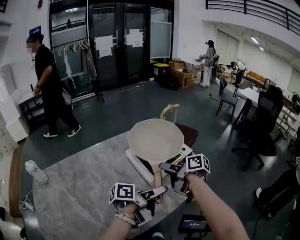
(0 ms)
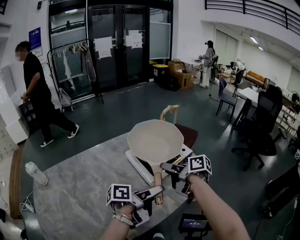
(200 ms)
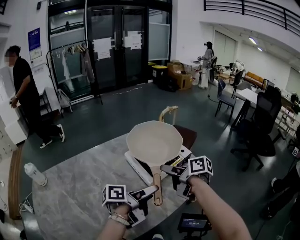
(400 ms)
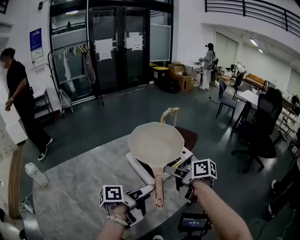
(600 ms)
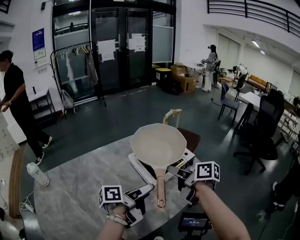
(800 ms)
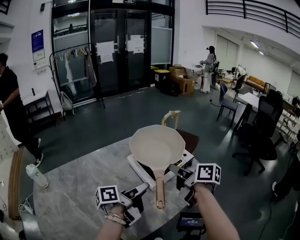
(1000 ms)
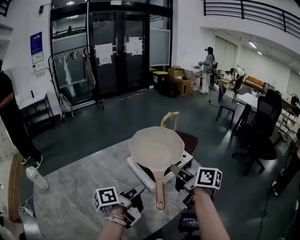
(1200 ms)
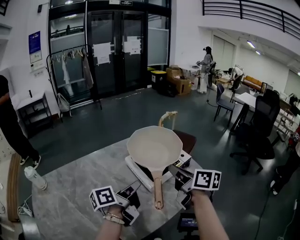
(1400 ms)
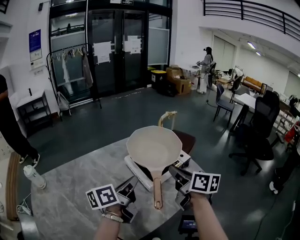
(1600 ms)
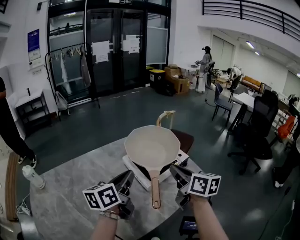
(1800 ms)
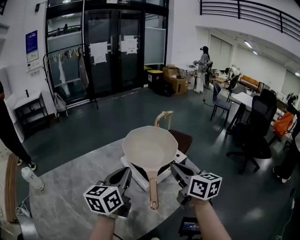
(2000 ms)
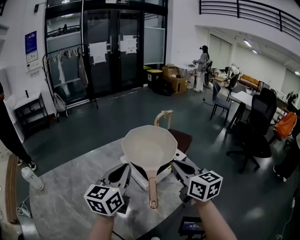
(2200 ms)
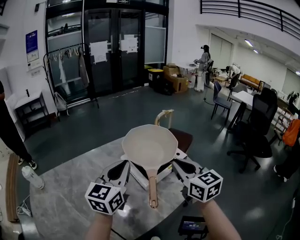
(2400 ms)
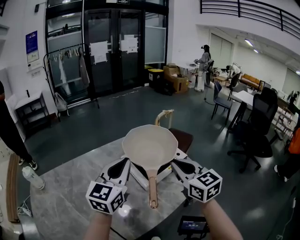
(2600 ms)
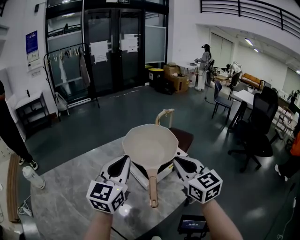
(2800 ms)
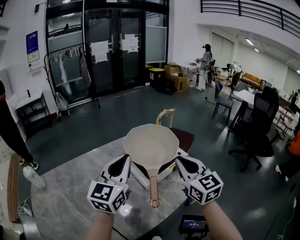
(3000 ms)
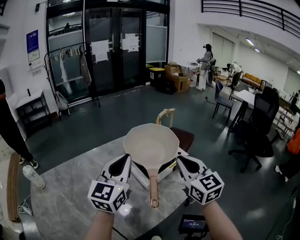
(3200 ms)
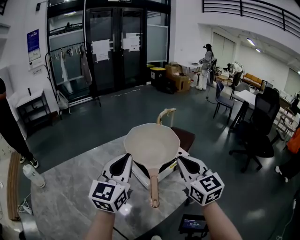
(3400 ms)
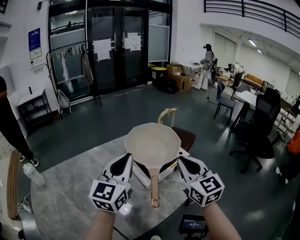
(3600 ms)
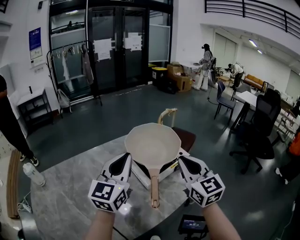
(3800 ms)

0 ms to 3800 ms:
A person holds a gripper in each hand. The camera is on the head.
0 ms to 1200 ms: The right gripper is displaced upward by some 10 cm, changes its angle by about 20 degrees, and closes its fingers.
1200 ms to 2600 ms: The right gripper rolls counterclockwise, seen from behind, by some 50 degrees.

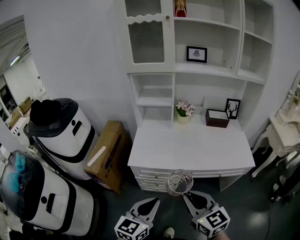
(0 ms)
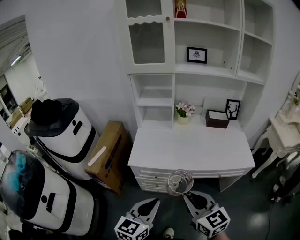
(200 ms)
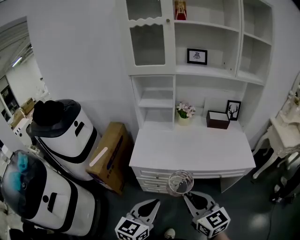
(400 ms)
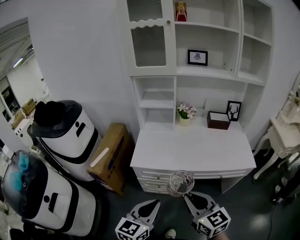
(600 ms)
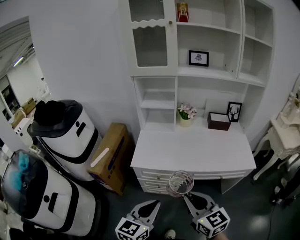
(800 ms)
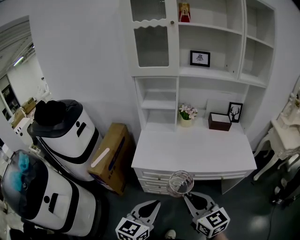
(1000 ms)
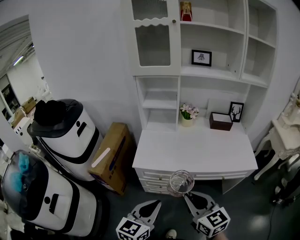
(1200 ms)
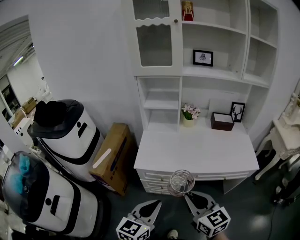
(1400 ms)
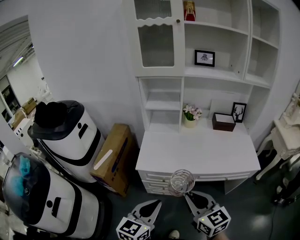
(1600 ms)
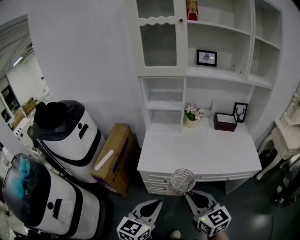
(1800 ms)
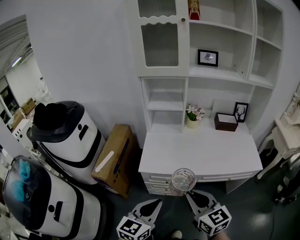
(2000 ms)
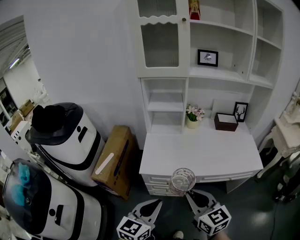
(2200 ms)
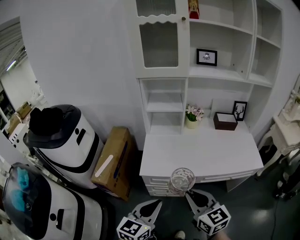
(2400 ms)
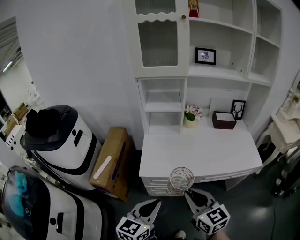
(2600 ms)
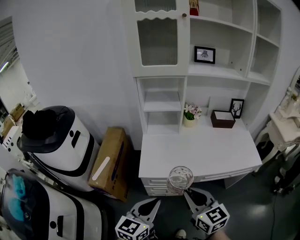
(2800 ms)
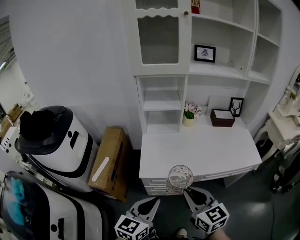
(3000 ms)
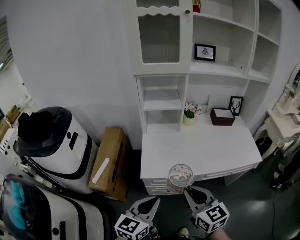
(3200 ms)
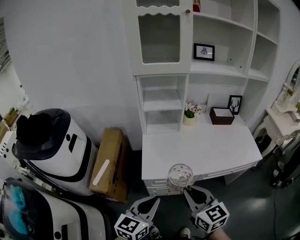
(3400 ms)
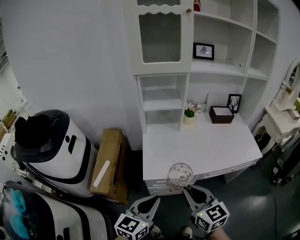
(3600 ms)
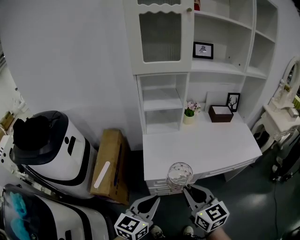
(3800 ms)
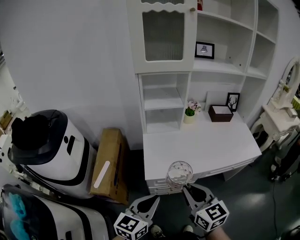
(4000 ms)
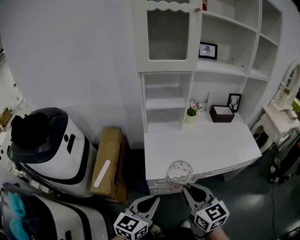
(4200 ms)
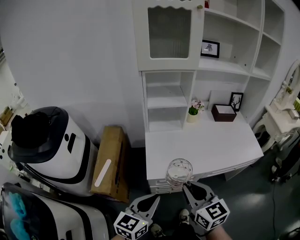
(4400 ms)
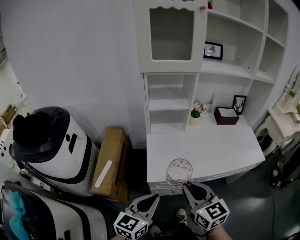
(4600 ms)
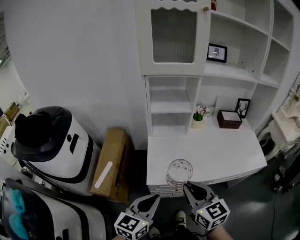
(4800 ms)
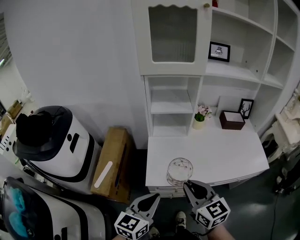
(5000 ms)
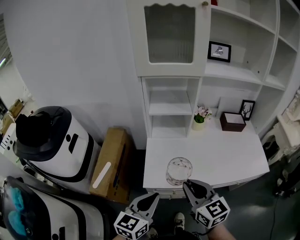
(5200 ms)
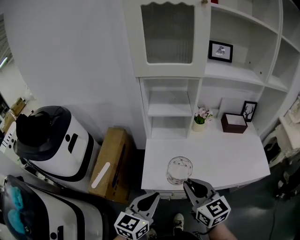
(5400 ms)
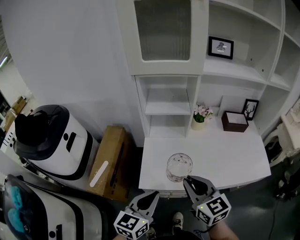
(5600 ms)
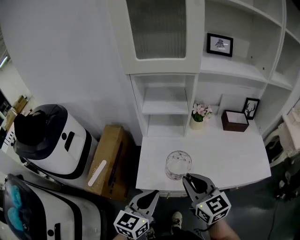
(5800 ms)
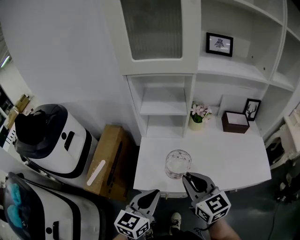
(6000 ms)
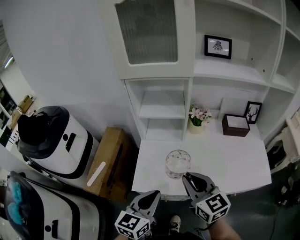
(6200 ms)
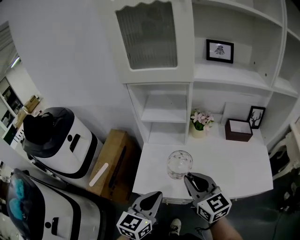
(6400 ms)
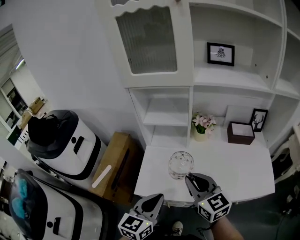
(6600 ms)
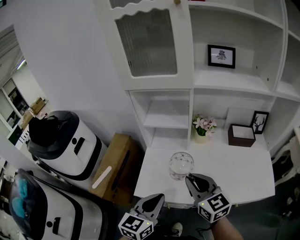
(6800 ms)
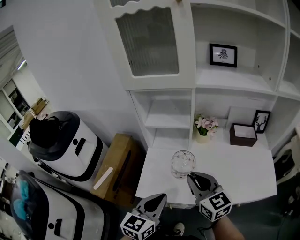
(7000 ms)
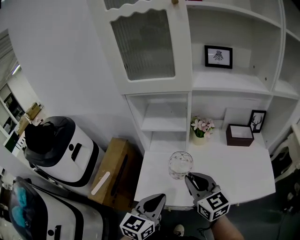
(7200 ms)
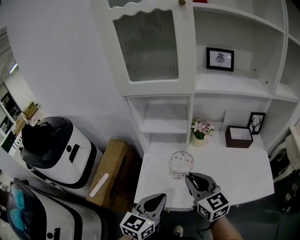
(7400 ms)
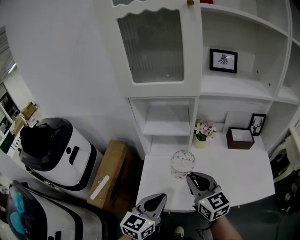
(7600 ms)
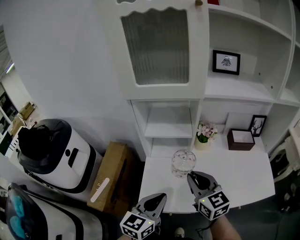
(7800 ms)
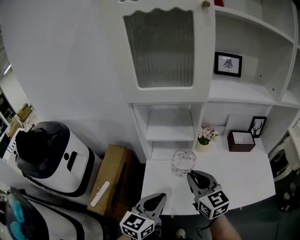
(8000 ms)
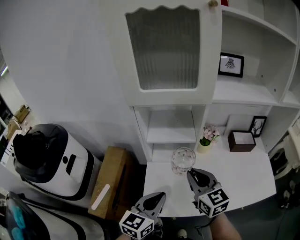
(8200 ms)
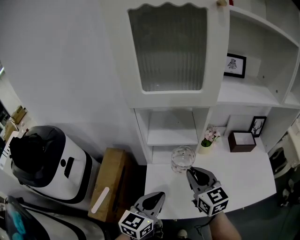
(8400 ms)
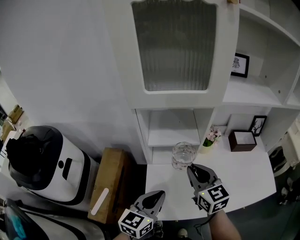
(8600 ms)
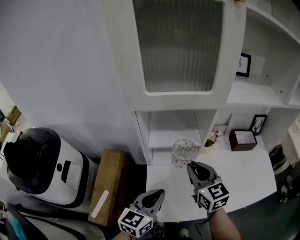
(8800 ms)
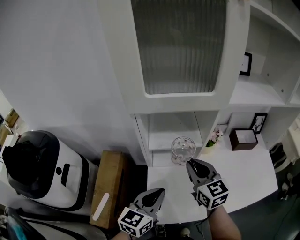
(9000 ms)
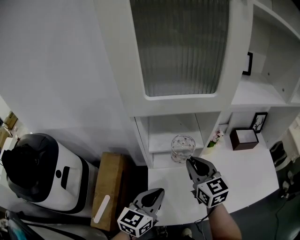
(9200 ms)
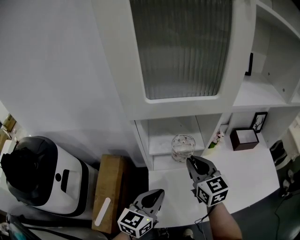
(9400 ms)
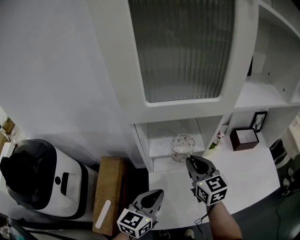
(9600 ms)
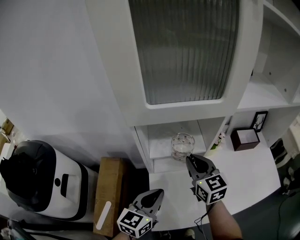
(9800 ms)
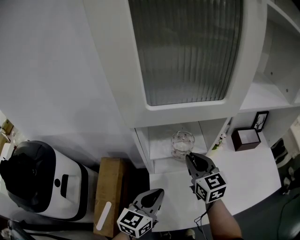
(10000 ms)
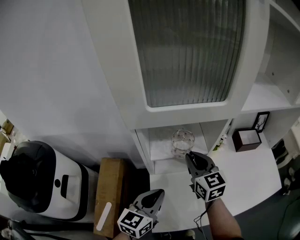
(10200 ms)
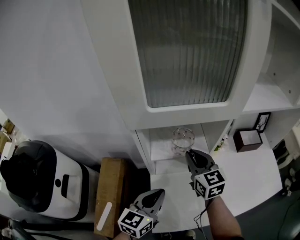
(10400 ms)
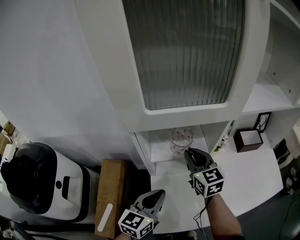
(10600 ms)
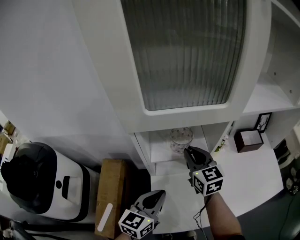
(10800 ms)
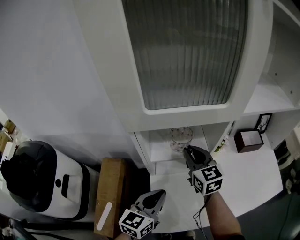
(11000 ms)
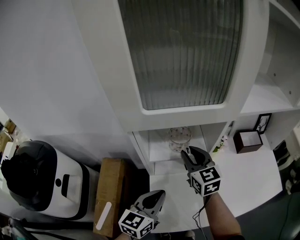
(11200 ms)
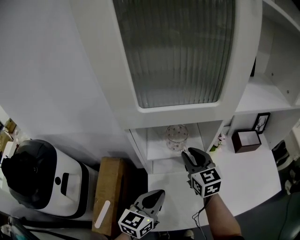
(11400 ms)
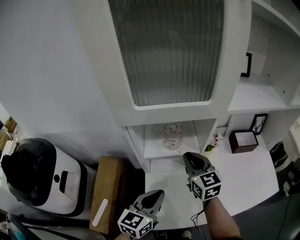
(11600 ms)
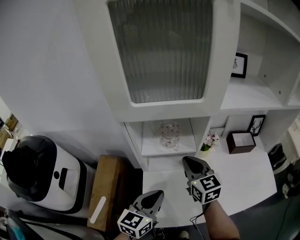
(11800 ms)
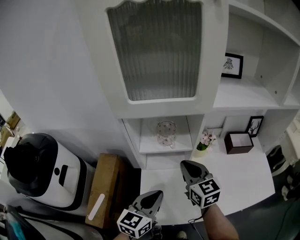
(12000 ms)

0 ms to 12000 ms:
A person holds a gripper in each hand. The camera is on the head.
0 ms to 1600 ms: The grippers move only a little.
1600 ms to 3000 ms: Both grippers move to the left and forward, some 10 cm.
3000 ms to 4400 ms: The two grippers go roughly 10 cm to the left.
4400 ms to 6000 ms: Both grippers move forward and to the right, about 15 cm.
6000 ms to 7600 ms: The two grippers go approximately 5 cm forward.
7600 ms to 9000 ms: The grippers both shift forward and to the left by some 15 cm.
9000 ms to 10400 ms: The right gripper travels forward by some 10 cm; the left gripper heads forward, covering roughly 5 cm.
10400 ms to 12000 ms: The left gripper goes roughly 10 cm to the right and backward; the right gripper is displaced backward by roughly 10 cm.

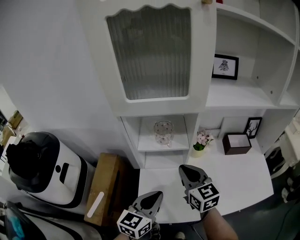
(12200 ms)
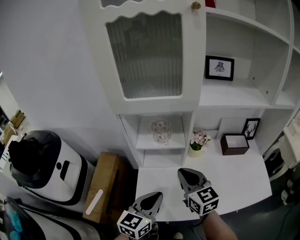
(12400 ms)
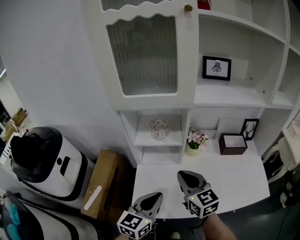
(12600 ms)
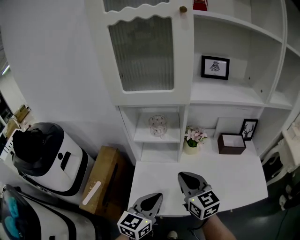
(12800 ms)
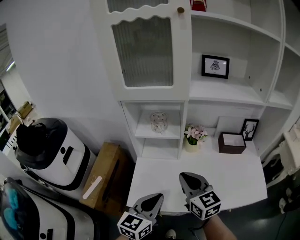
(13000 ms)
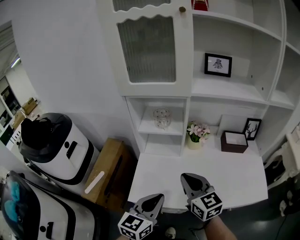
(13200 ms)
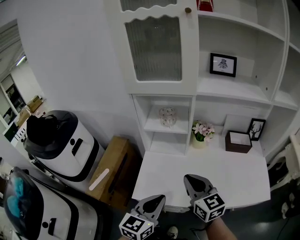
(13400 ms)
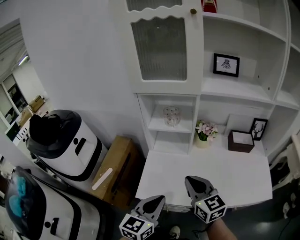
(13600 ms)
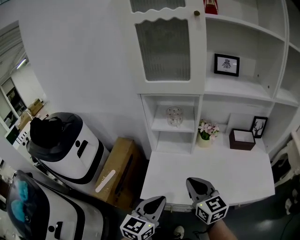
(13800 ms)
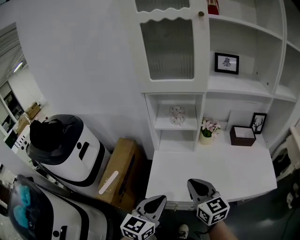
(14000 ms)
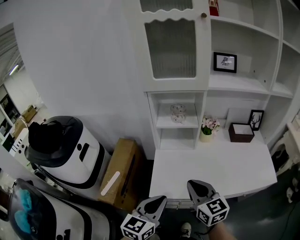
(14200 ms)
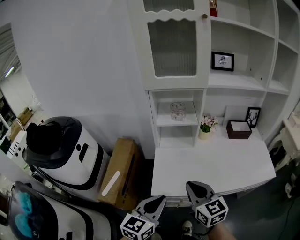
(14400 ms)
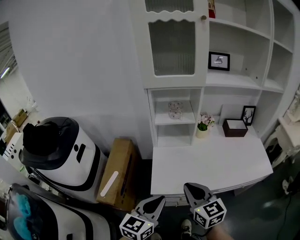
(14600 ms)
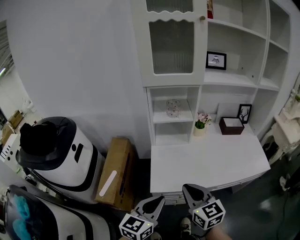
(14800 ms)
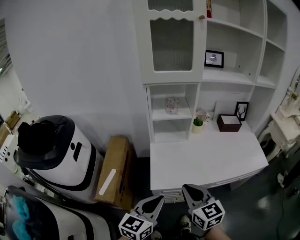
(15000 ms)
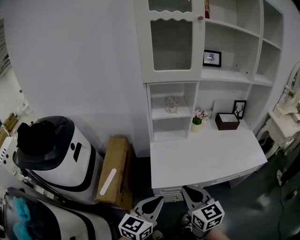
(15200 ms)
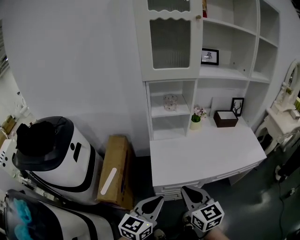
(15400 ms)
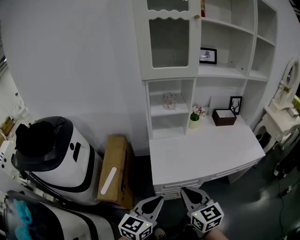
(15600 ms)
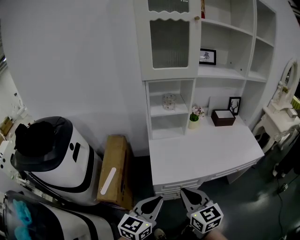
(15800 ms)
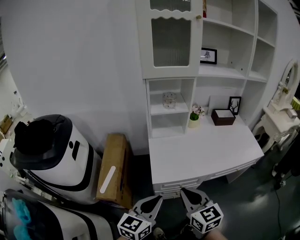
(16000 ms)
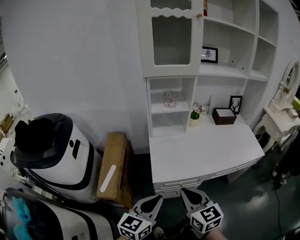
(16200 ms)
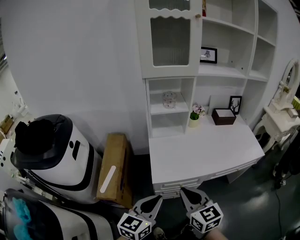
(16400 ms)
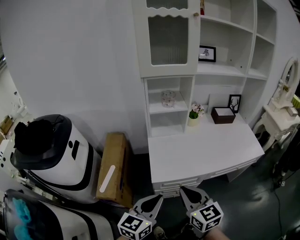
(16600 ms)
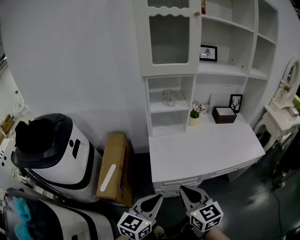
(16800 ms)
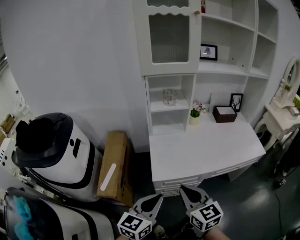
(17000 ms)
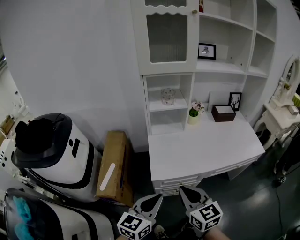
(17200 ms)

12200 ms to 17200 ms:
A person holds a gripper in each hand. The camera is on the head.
12200 ms to 13800 ms: Both grippers move backward, about 20 cm.
13800 ms to 15600 ms: The two grippers go approximately 20 cm backward and to the left.
15600 ms to 17200 ms: Both grippers stay put.

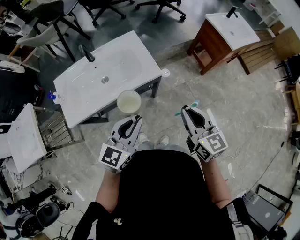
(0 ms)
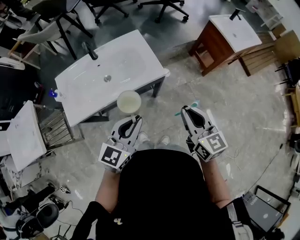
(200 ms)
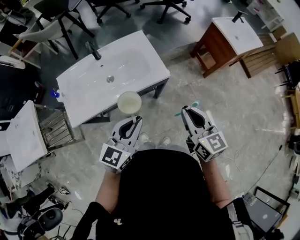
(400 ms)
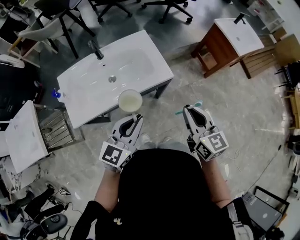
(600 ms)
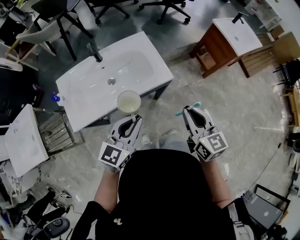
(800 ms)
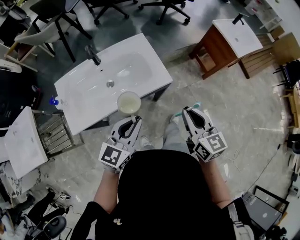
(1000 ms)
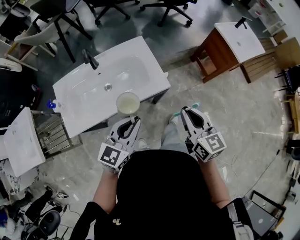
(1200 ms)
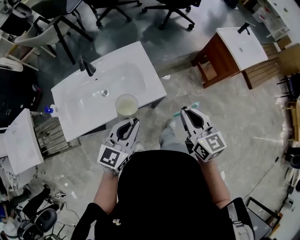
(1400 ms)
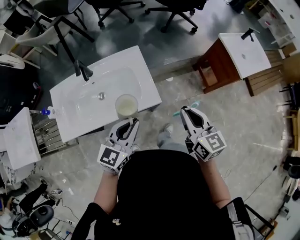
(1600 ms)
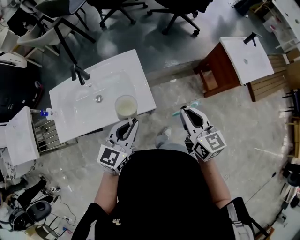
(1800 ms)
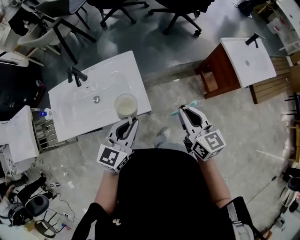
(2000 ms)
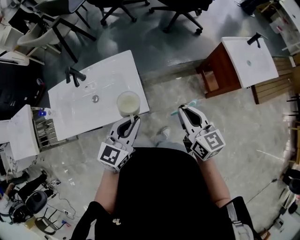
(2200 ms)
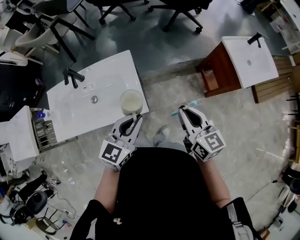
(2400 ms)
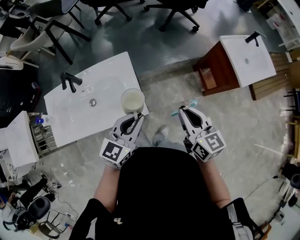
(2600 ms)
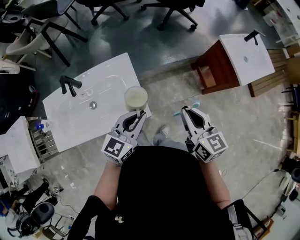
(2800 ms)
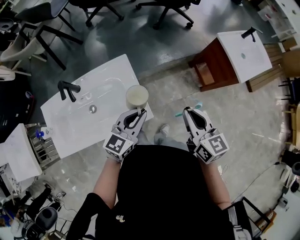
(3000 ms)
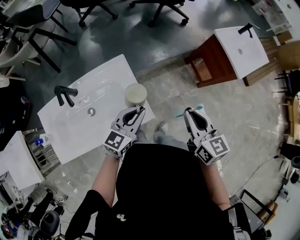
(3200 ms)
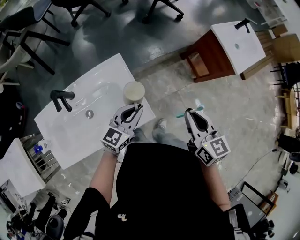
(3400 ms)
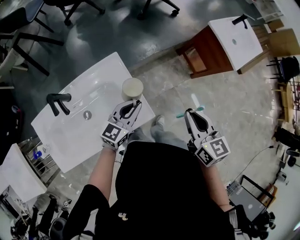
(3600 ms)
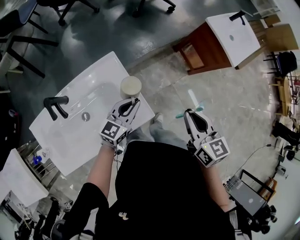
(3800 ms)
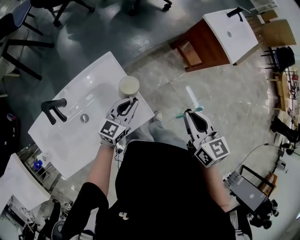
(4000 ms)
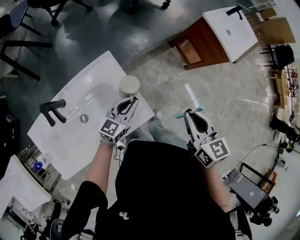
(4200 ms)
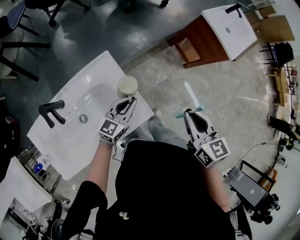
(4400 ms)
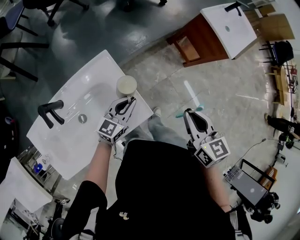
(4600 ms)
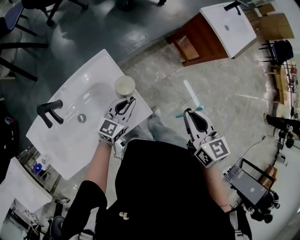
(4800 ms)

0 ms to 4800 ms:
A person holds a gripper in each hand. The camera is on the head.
0 ms to 1600 ms: Both grippers travel together forward, roughly 20 cm.
1600 ms to 3200 ms: The left gripper heads forward and downward, covering about 20 cm, while the right gripper shifts roughly 10 cm forward.
3200 ms to 4800 ms: The left gripper is displaced downward by some 10 cm.
